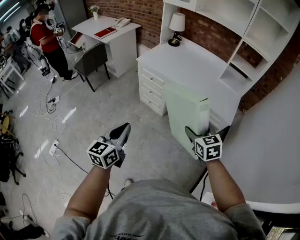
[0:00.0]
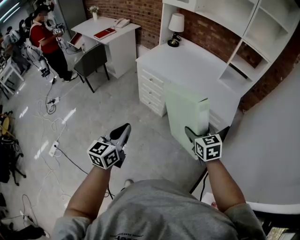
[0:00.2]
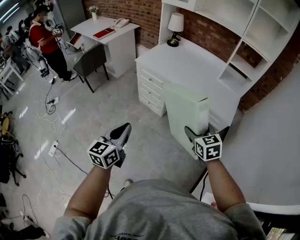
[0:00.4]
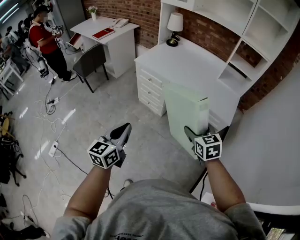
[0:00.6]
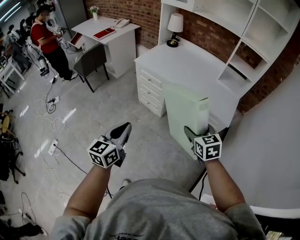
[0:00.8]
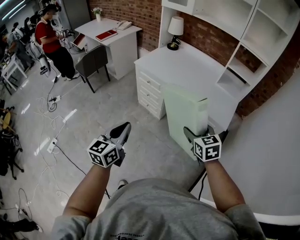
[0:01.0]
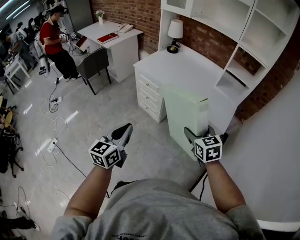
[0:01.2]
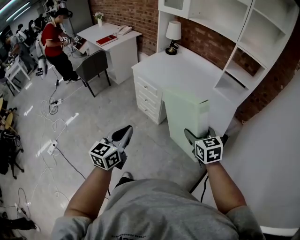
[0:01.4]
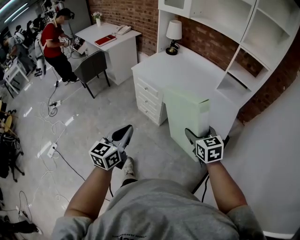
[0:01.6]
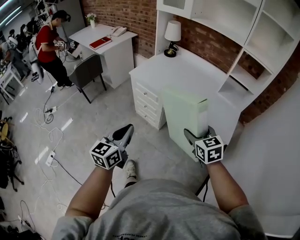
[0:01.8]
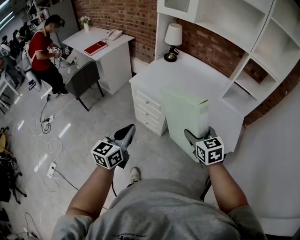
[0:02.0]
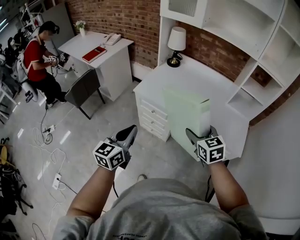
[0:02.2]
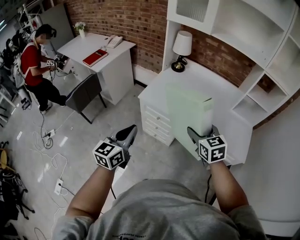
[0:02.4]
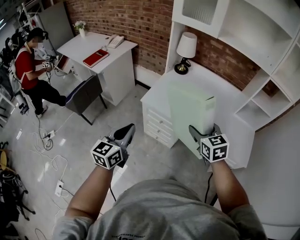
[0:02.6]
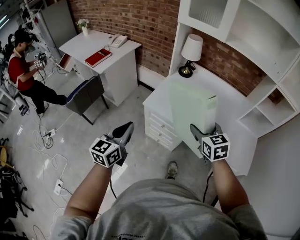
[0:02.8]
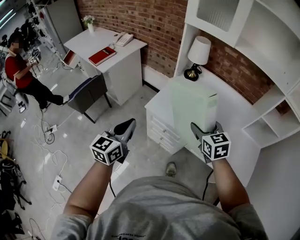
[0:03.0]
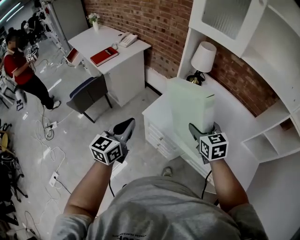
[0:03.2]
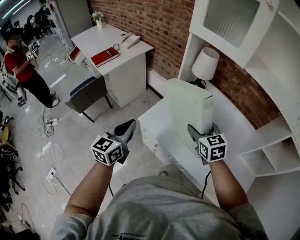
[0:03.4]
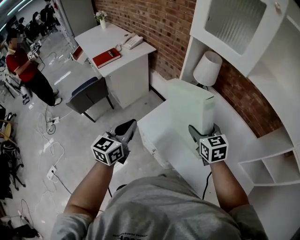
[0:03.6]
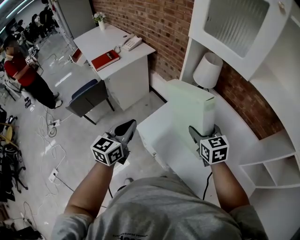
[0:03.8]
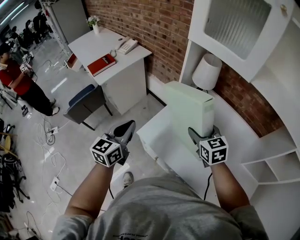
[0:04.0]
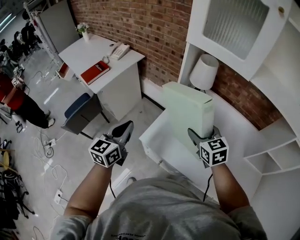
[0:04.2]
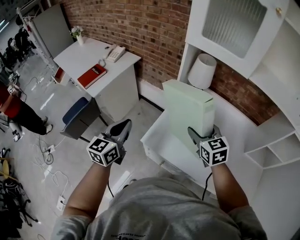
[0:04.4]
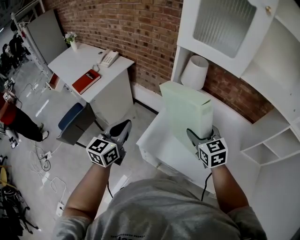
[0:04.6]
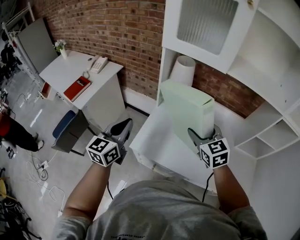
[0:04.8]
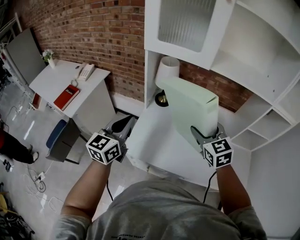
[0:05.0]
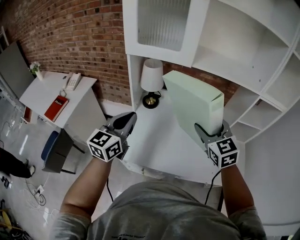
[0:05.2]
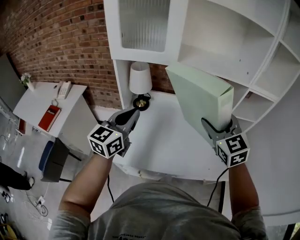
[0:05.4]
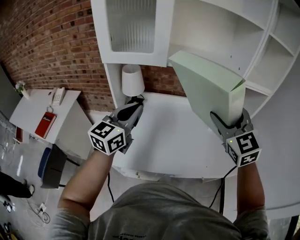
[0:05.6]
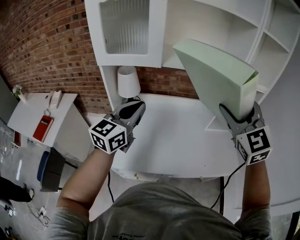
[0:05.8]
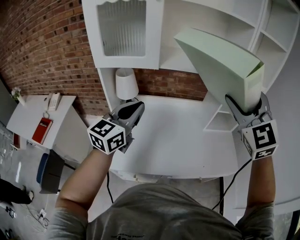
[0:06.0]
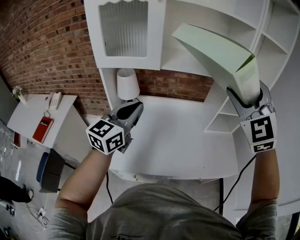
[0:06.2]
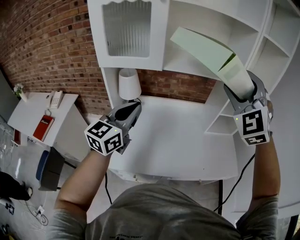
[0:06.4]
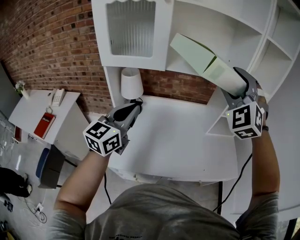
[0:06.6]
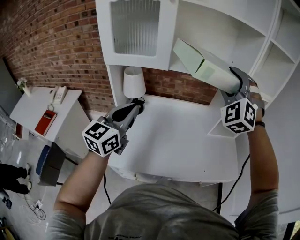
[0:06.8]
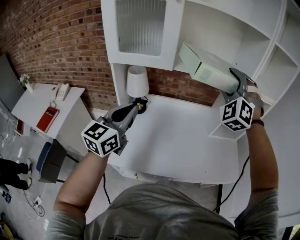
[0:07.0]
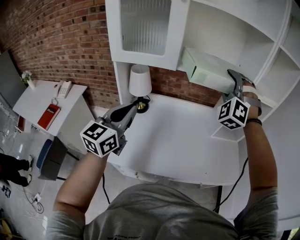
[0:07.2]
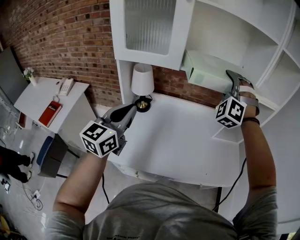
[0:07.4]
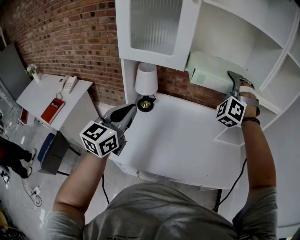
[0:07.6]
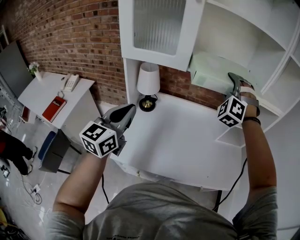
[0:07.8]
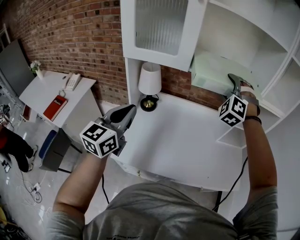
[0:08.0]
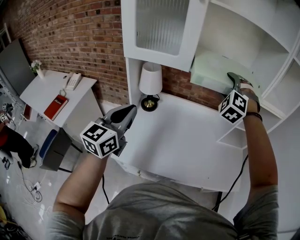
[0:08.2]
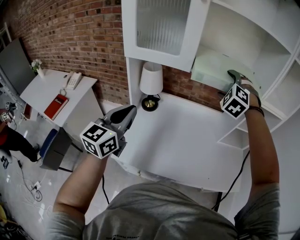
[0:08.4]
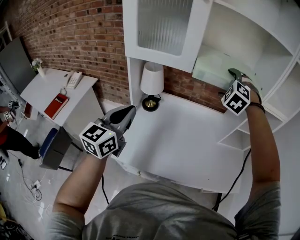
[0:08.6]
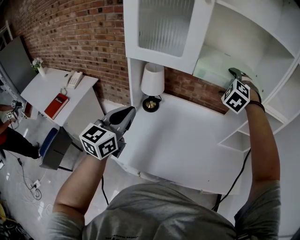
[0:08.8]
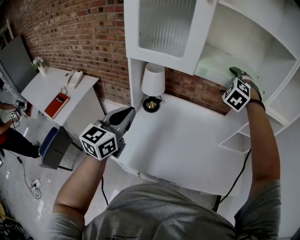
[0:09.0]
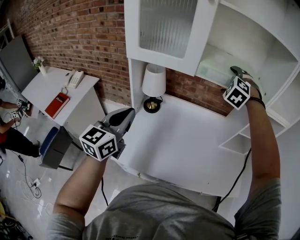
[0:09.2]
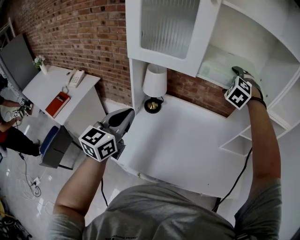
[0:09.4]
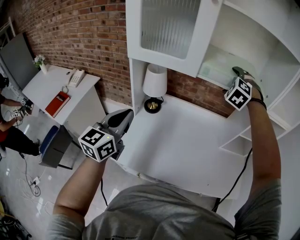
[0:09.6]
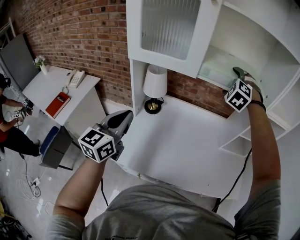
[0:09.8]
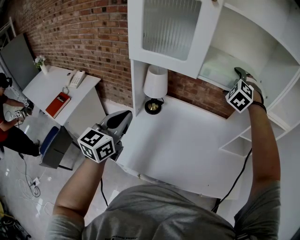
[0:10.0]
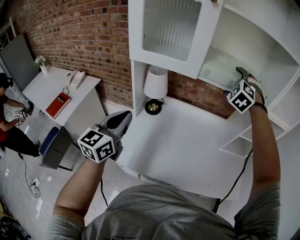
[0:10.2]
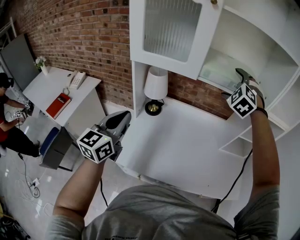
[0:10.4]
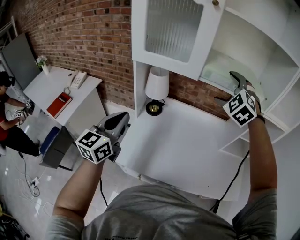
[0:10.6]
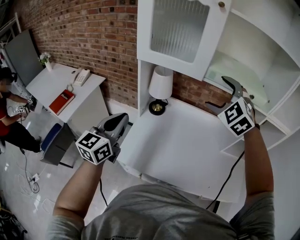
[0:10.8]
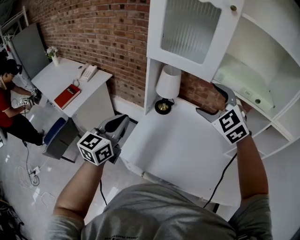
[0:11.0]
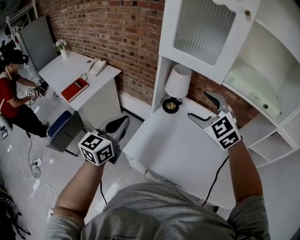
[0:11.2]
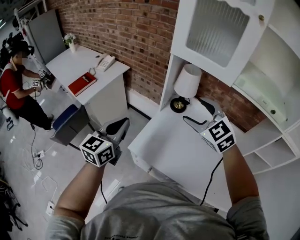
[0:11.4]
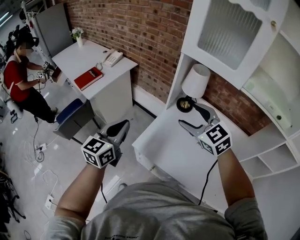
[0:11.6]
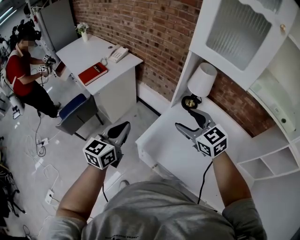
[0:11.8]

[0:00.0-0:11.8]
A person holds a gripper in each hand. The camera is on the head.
0:00.0 to 0:01.4: The grippers both shift to the right by some 10 cm.
0:01.4 to 0:03.0: The two grippers travel together, forward and to the left, approximately 50 cm.
0:03.0 to 0:04.4: The two grippers go some 20 cm forward.
0:04.4 to 0:06.0: The right gripper heads upward, covering approximately 35 cm, and changes its angle by approximately 50 degrees; the left gripper shifts by roughly 35 cm, and changes its angle by approximately 40 degrees.
0:06.0 to 0:07.4: The left gripper is displaced to the left by roughly 10 cm; the right gripper moves forward, to the left and downward, about 20 cm, and rotates around the line of its fingers by some 40 degrees, counterclockwise from behind.
0:07.4 to 0:08.8: The right gripper moves forward and downward, roughly 10 cm, and changes its angle by some 30 degrees.
0:08.8 to 0:10.4: The grippers make only small movements.
0:10.4 to 0:11.8: The right gripper shifts by about 40 cm, rotates approximately 70 degrees, and closes up, while the left gripper changes place by approximately 20 cm, and swivels roughly 20 degrees.

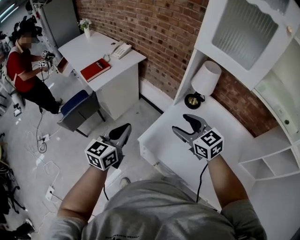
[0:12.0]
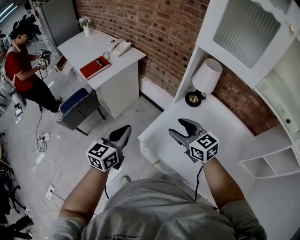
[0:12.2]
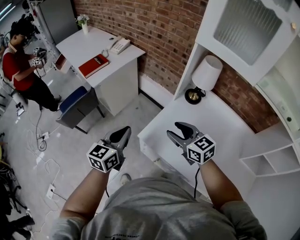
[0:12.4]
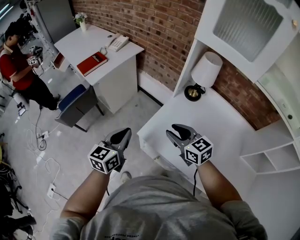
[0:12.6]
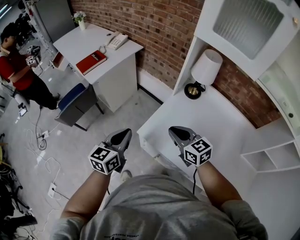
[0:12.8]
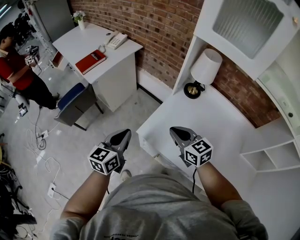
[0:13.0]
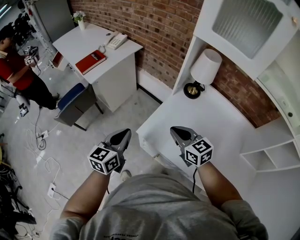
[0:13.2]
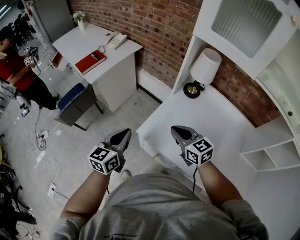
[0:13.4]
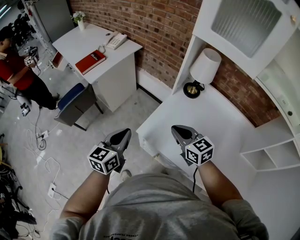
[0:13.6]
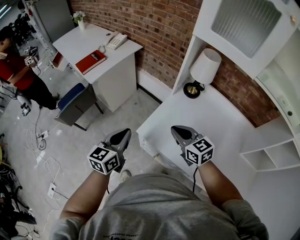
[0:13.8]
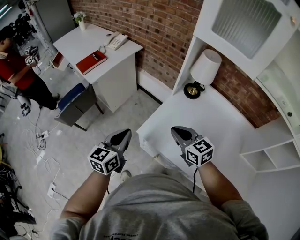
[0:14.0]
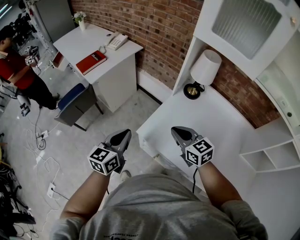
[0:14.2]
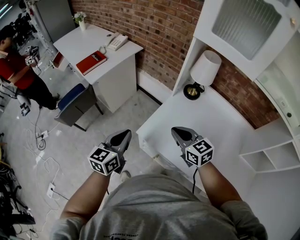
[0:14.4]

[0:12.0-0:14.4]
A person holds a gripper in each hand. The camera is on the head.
0:12.0 to 0:13.2: Both grippers travel together downward, about 5 cm. The right gripper closes its fingers.
0:13.2 to 0:14.4: Both grippers stay about where they are.

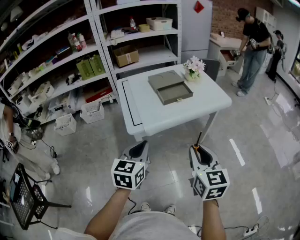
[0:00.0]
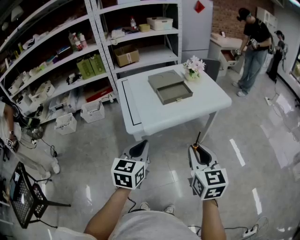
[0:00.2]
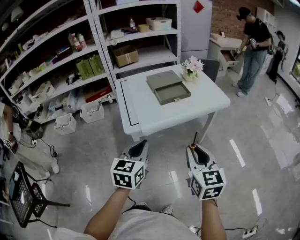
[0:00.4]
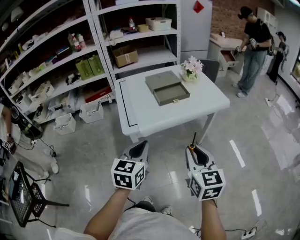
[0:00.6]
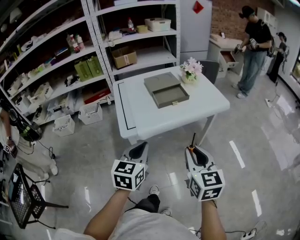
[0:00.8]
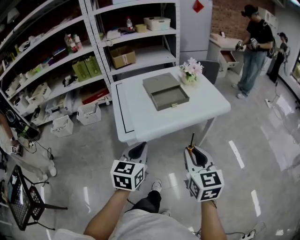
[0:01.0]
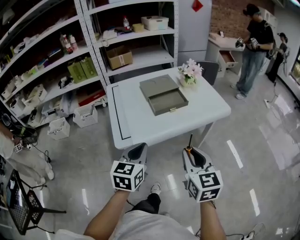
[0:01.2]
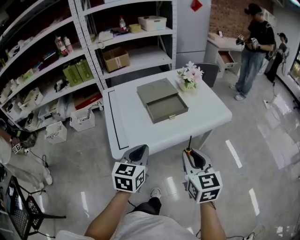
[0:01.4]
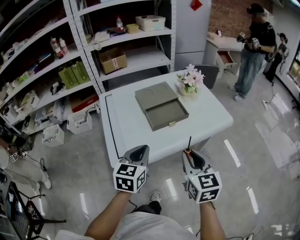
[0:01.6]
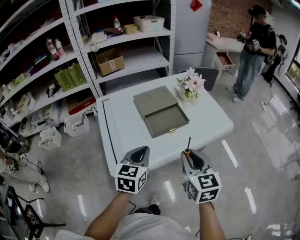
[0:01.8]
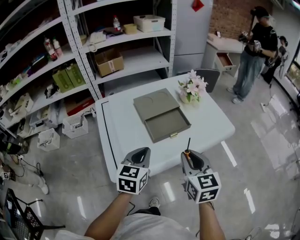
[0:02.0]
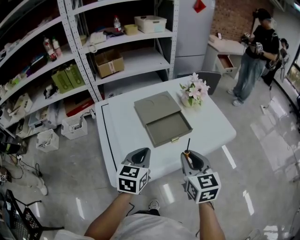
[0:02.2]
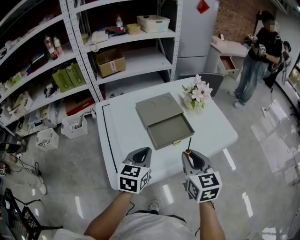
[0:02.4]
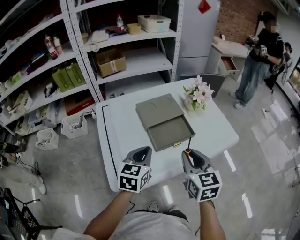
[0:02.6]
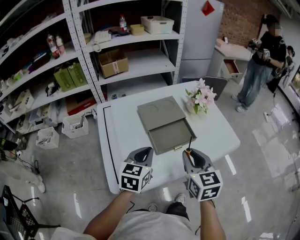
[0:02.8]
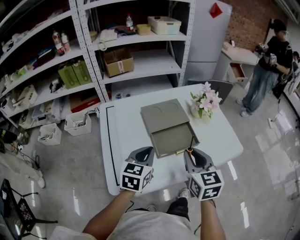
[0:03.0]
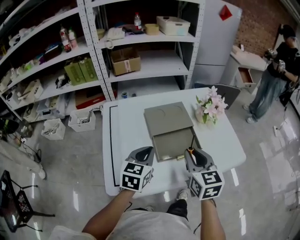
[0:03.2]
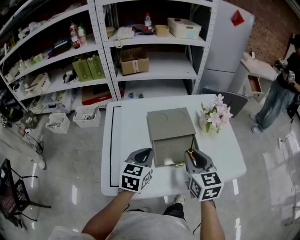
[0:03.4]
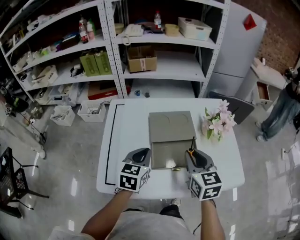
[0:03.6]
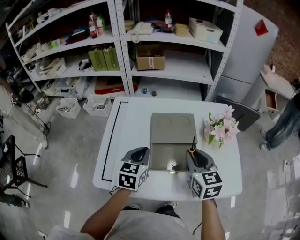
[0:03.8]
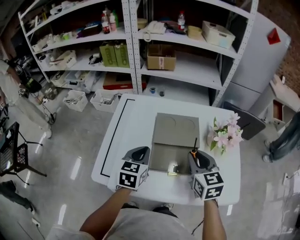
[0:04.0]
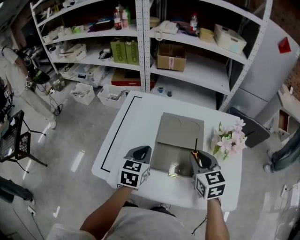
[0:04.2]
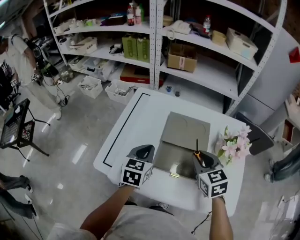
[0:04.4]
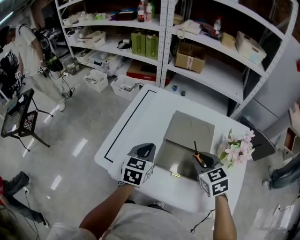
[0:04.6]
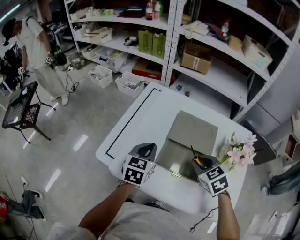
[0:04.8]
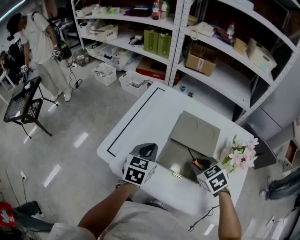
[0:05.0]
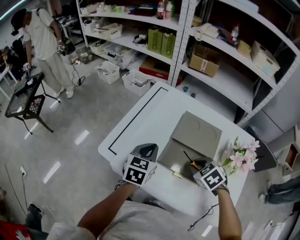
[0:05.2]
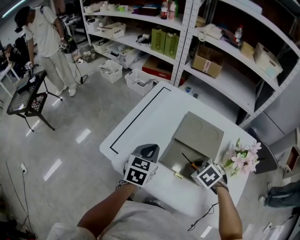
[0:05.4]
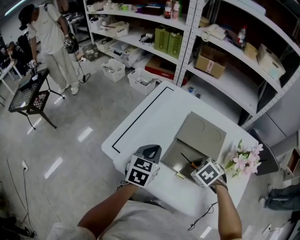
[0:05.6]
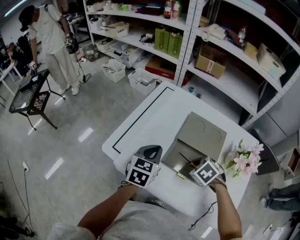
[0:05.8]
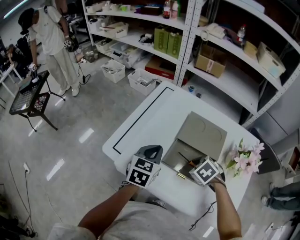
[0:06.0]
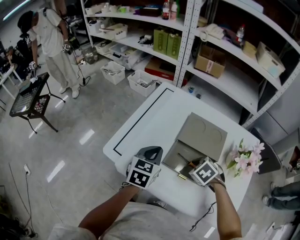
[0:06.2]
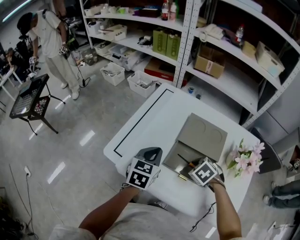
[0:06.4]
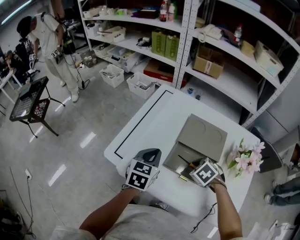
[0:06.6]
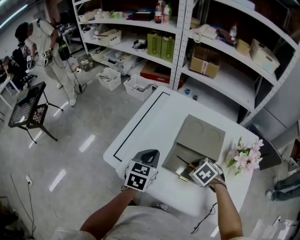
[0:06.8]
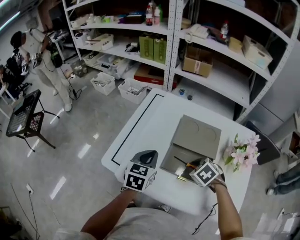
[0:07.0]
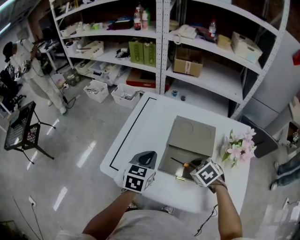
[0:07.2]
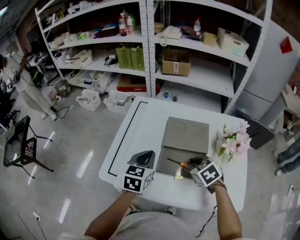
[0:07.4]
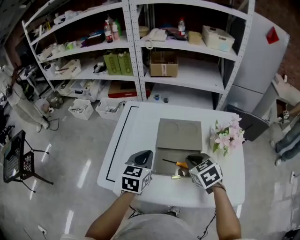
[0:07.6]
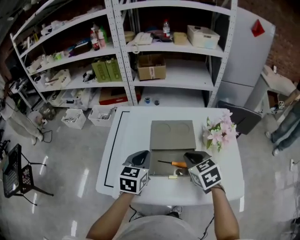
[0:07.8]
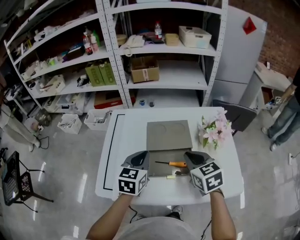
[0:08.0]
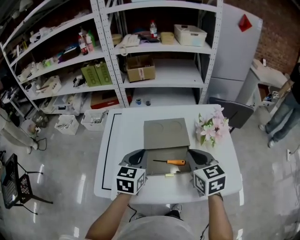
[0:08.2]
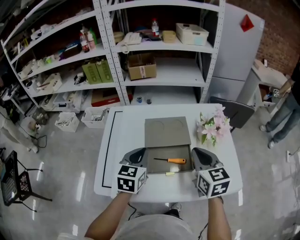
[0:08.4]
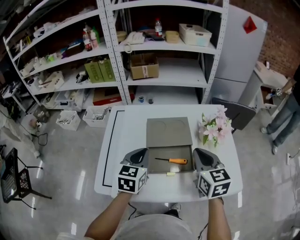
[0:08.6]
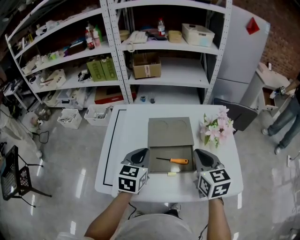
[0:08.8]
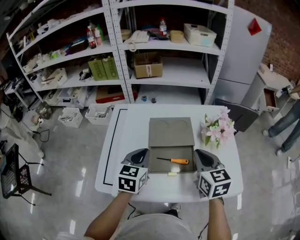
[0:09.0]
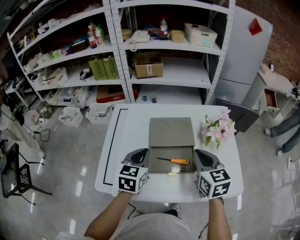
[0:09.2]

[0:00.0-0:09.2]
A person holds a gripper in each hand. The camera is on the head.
0:00.0 to 0:01.6: The grippers both shift forward by some 20 cm.
0:01.6 to 0:03.0: Both grippers travel together forward, approximately 15 cm.
0:03.0 to 0:04.6: The right gripper shifts by roughly 15 cm, and swivels some 50 degrees; the left gripper moves about 5 cm, and swivels about 40 degrees.
0:04.6 to 0:06.2: The right gripper moves downward, some 10 cm, and angles its fingers downward, by some 30 degrees.
0:06.2 to 0:07.6: The right gripper shifts approximately 10 cm upward, and changes its angle by approximately 40 degrees, while the left gripper shifts by approximately 5 cm.
0:07.6 to 0:09.2: The right gripper travels upward by some 10 cm, and rotates some 40 degrees.
